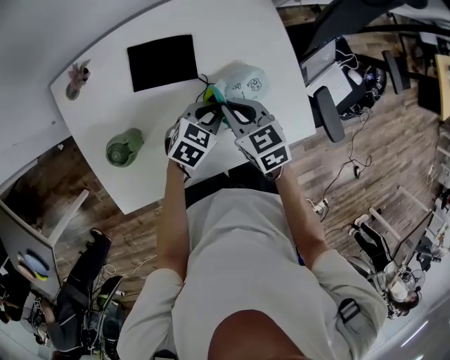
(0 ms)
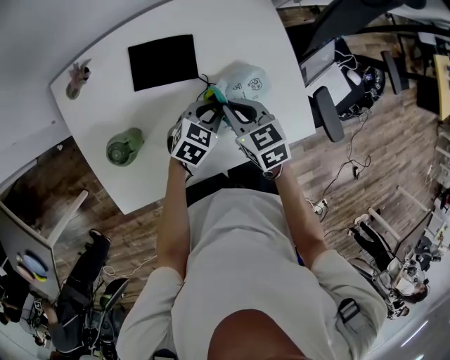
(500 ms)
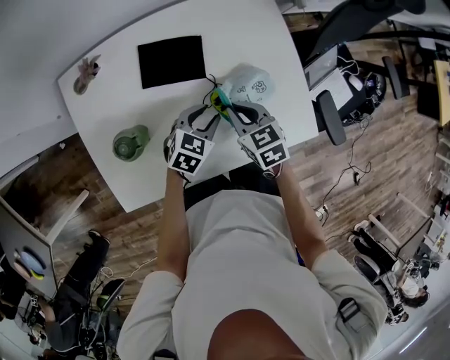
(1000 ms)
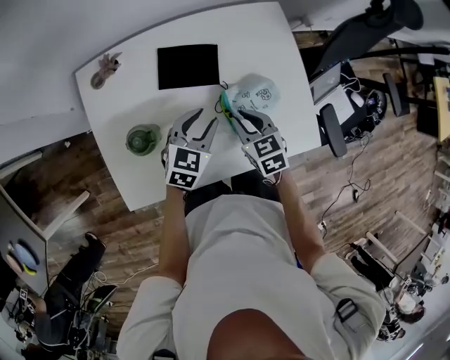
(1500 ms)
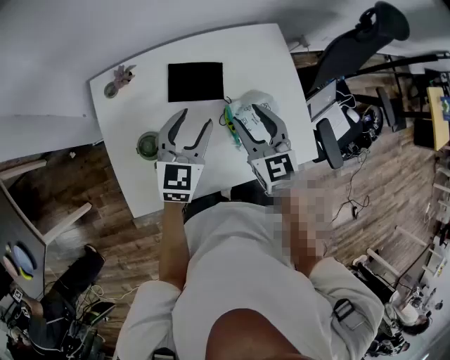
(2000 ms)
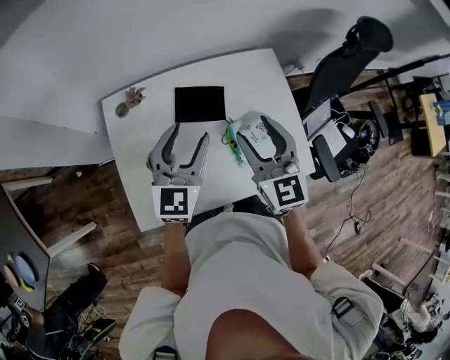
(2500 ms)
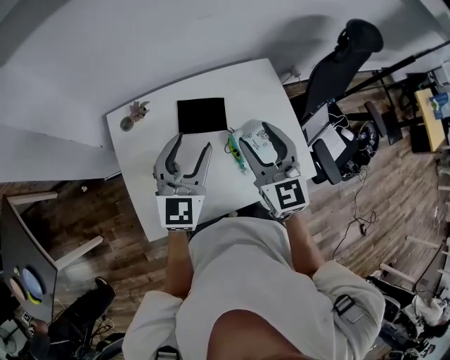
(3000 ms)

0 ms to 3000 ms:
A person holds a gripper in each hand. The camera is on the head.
0 ms to 1500 ms: The left gripper shifts approximately 10 cm to the left and upward, and turns by approximately 20 degrees.
1500 ms to 3000 ms: Both grippers travel together upward, roughly 25 cm. The left gripper rotates some 30 degrees. The right gripper angles its fingers upward, by roughly 40 degrees, and opens up.

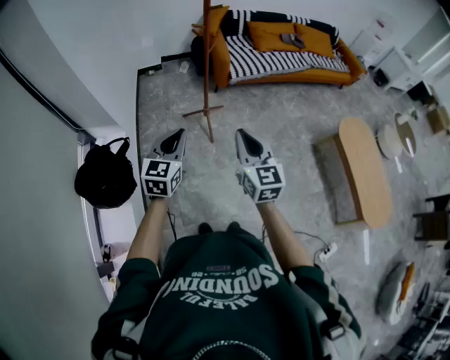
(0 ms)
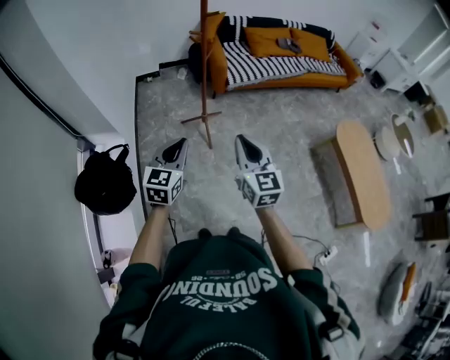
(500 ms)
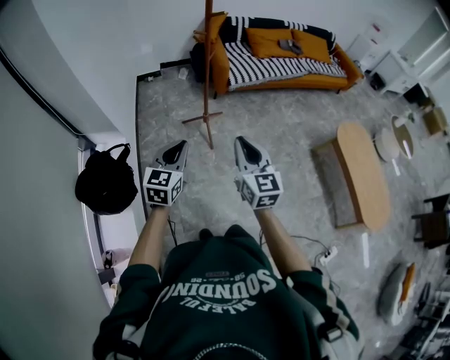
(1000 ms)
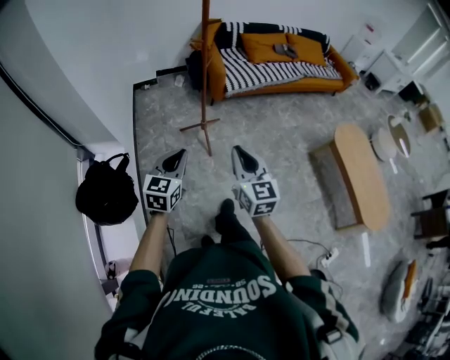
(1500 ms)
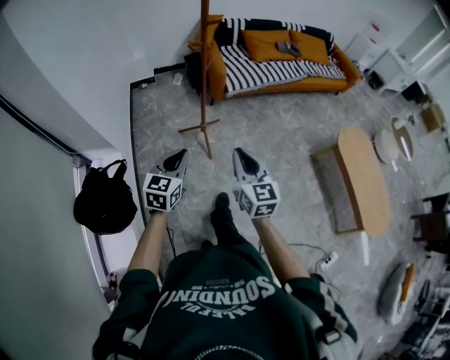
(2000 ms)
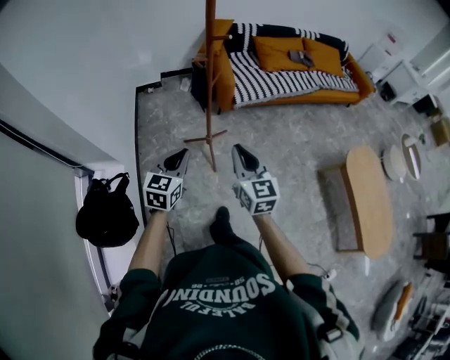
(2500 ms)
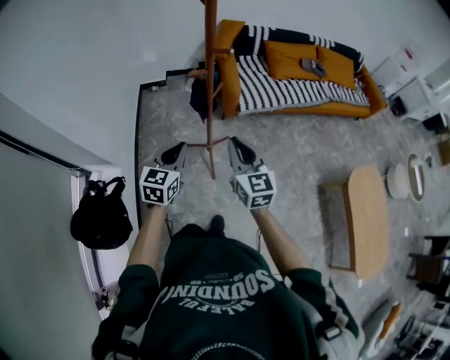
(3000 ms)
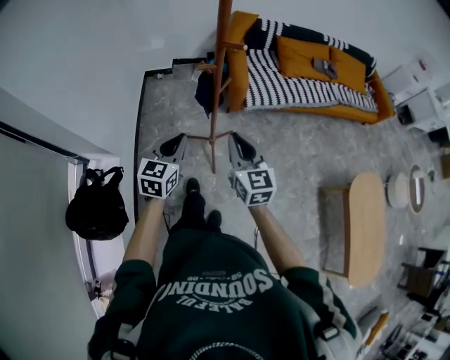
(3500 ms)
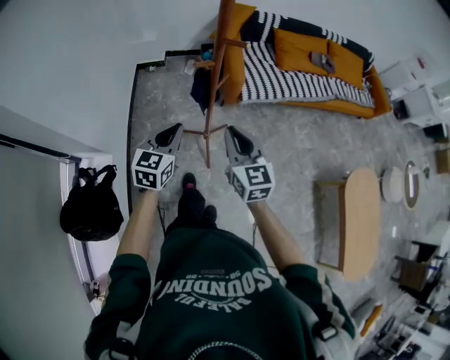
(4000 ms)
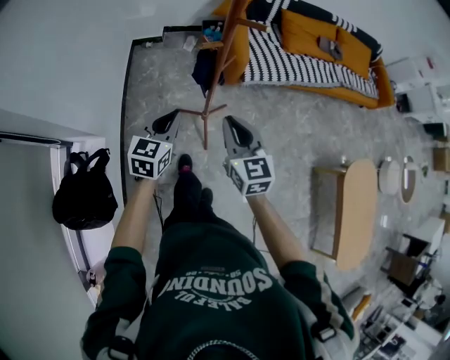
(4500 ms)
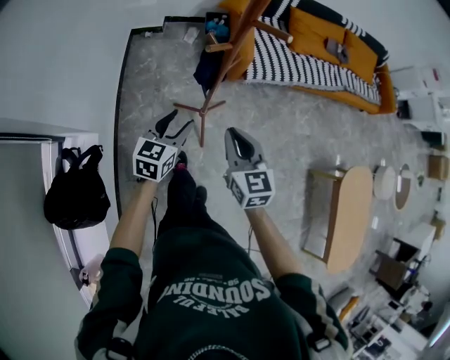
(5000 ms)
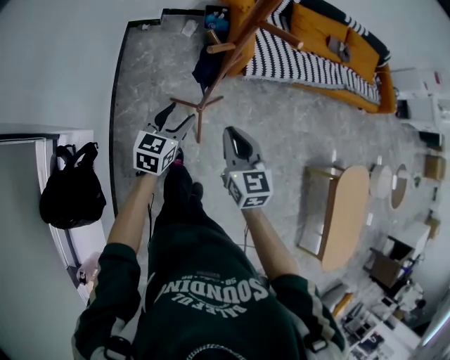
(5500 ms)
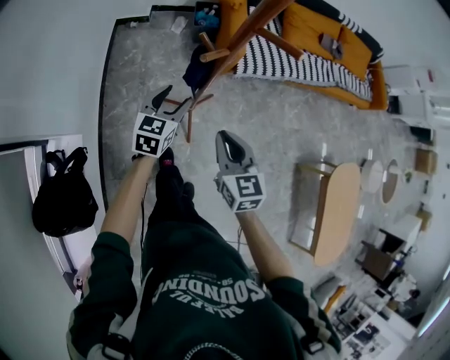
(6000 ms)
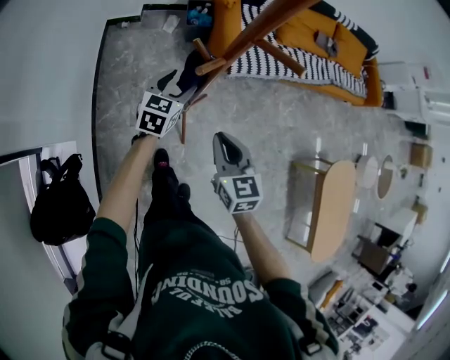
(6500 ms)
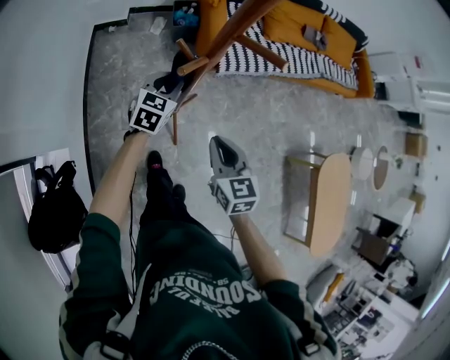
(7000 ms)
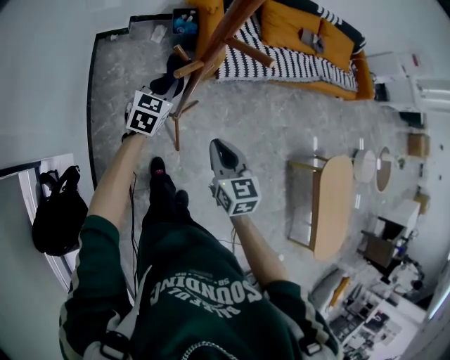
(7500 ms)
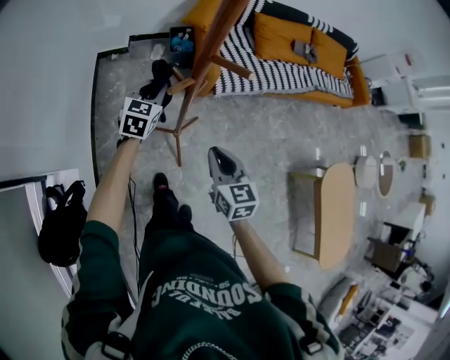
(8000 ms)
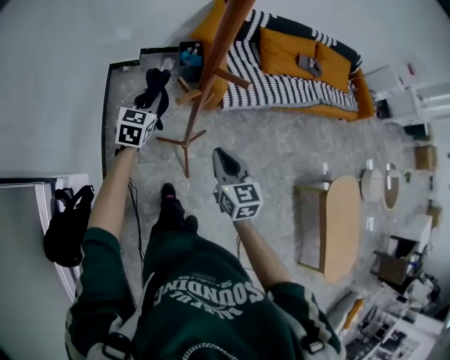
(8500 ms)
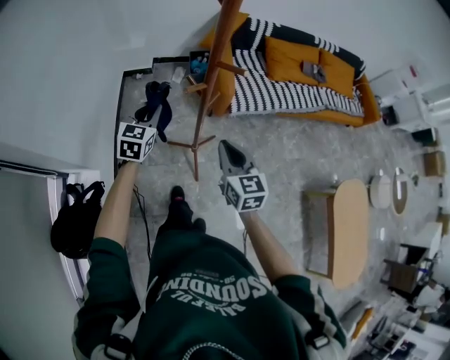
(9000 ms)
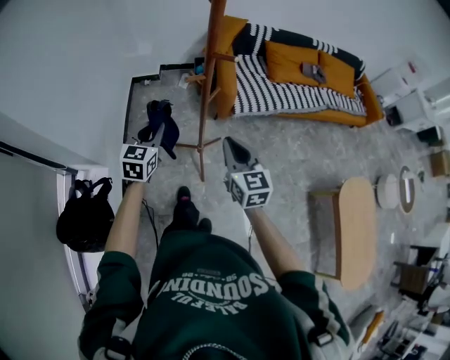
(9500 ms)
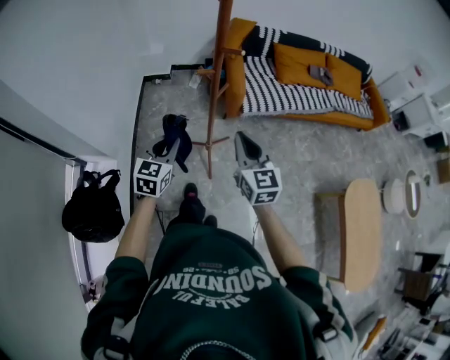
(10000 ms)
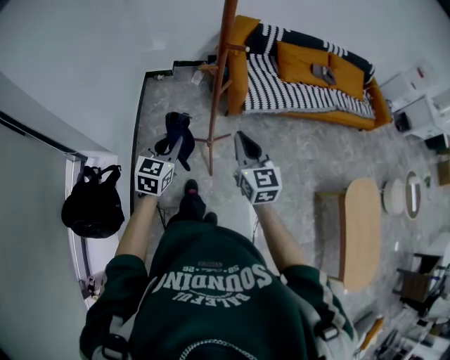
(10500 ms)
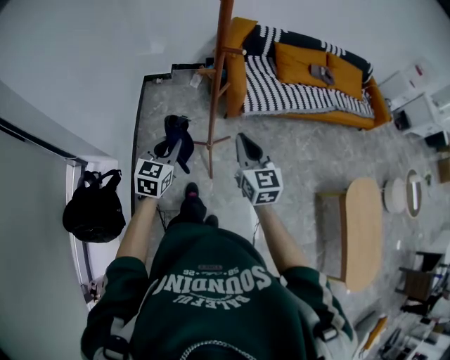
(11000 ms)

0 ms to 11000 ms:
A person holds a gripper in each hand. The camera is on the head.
0 ms to 2000 ms: The two grippers go about 10 cm forward.
2000 ms to 3500 ms: Both grippers travel together forward, about 30 cm.
3500 ms to 5500 ms: Both grippers move downward and forward, roughly 15 cm. The left gripper opens up.
5500 ms to 7500 ms: The left gripper moves forward, approximately 15 cm, and closes.
7500 ms to 9000 ms: The right gripper is displaced upward by roughly 10 cm. The left gripper goes about 15 cm upward, to the left and backward.
9000 ms to 11000 ms: The right gripper moves backward, about 10 cm; the left gripper is displaced backward by roughly 20 cm.

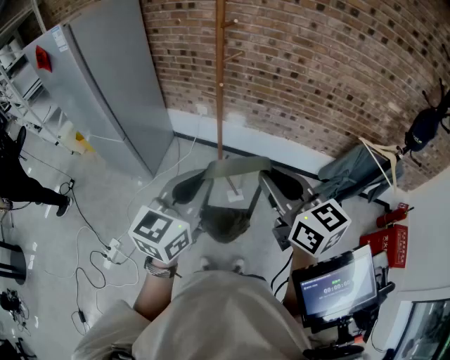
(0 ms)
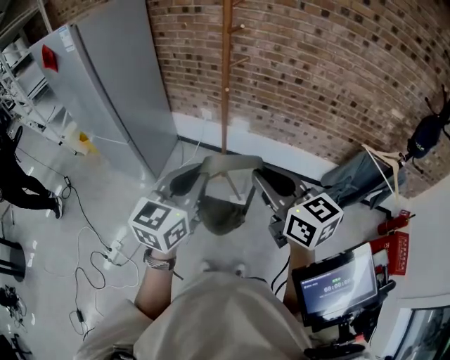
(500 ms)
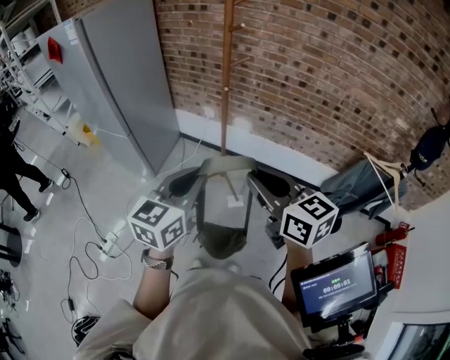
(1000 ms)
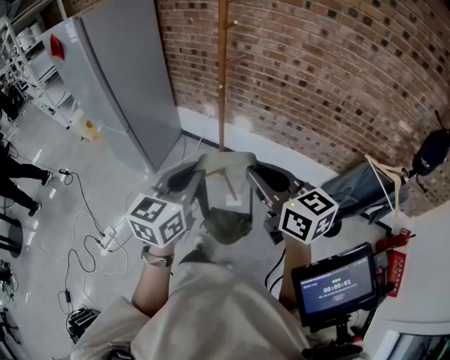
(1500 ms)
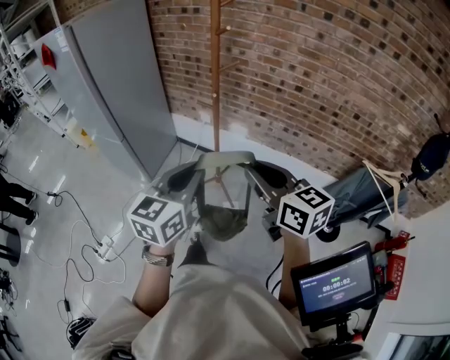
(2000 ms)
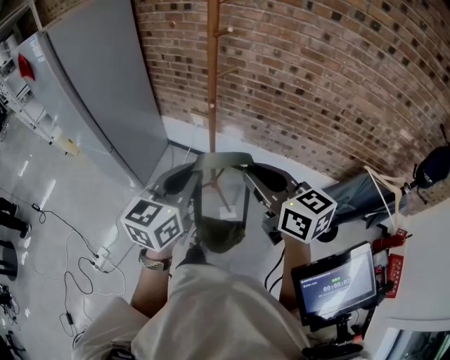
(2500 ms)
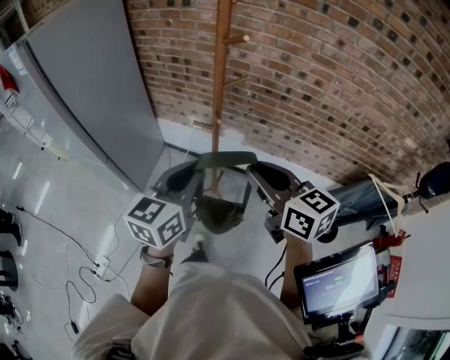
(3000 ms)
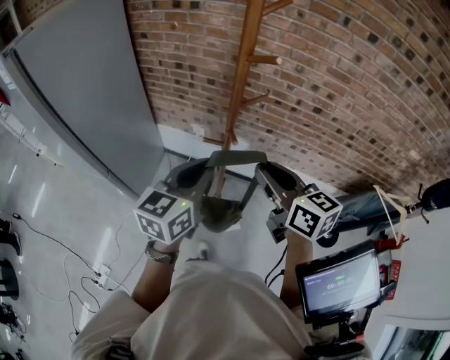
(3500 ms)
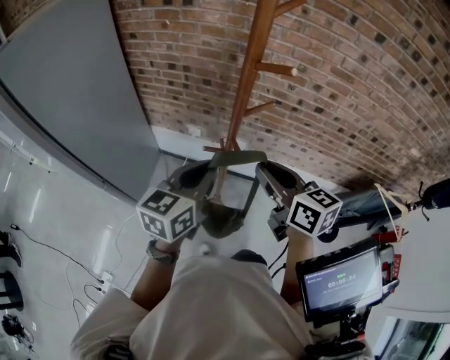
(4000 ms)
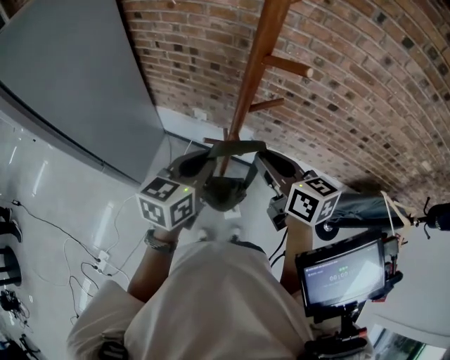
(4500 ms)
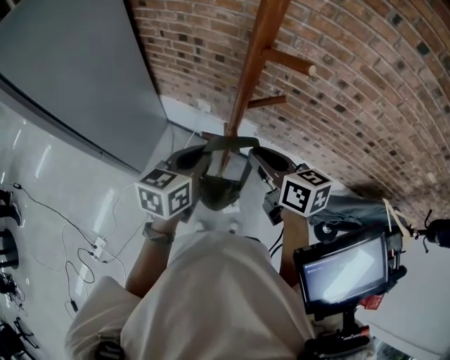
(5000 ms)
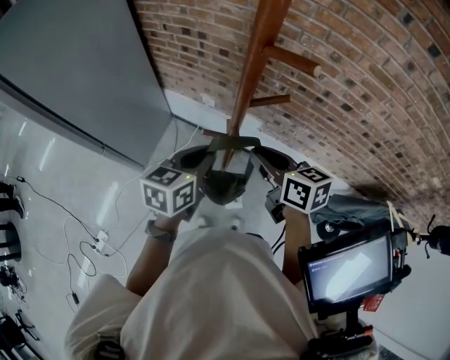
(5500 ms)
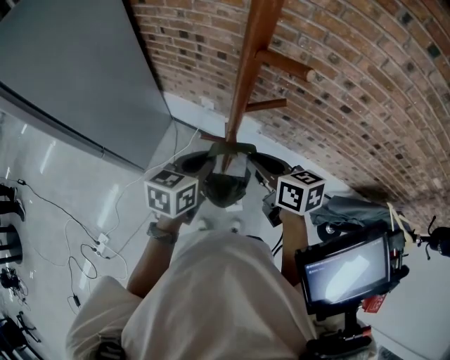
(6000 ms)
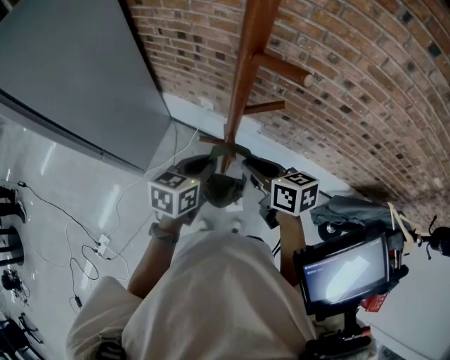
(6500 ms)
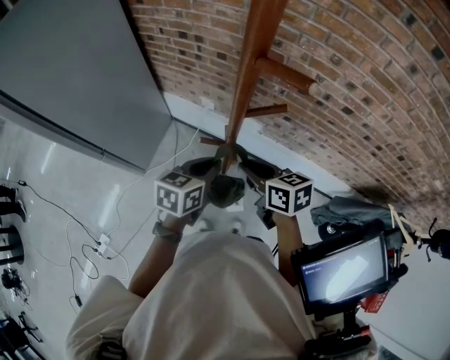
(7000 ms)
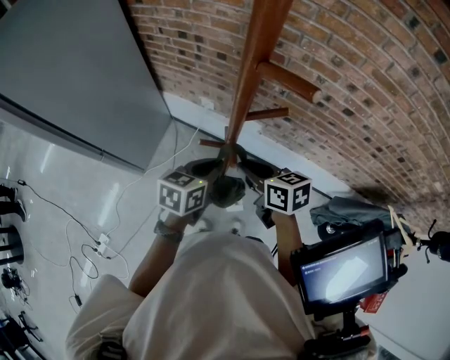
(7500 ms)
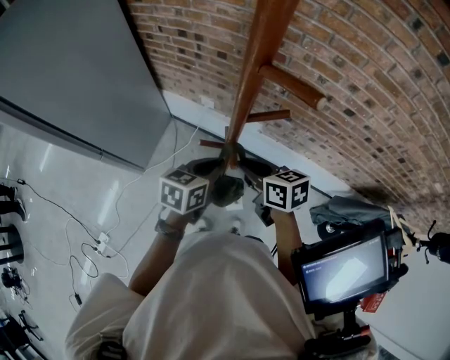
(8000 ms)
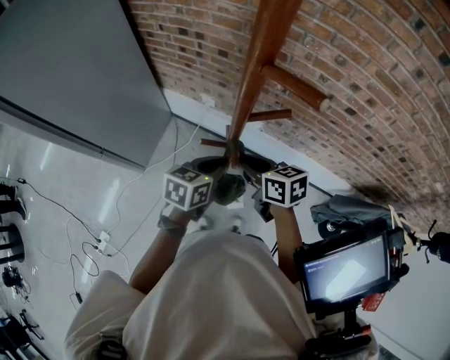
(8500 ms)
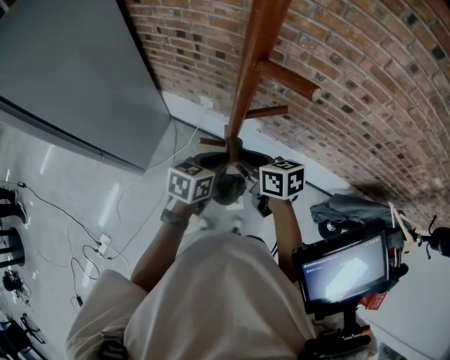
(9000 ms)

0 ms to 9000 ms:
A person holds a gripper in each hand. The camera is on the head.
0 ms to 2000 ms: The right gripper shifts some 10 cm forward; the left gripper shifts roughly 10 cm forward and to the right.
2000 ms to 4500 ms: The grippers both shift forward by some 35 cm.
4500 ms to 7000 ms: Both grippers move downward, roughly 10 cm.
7000 ms to 9000 ms: There are only small adjustments of the grippers.

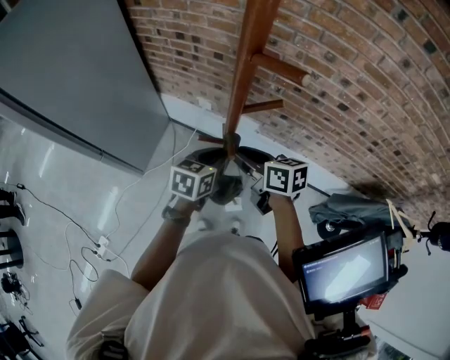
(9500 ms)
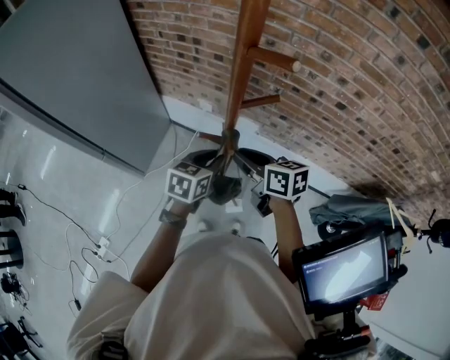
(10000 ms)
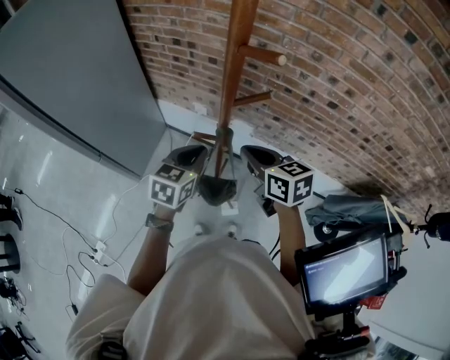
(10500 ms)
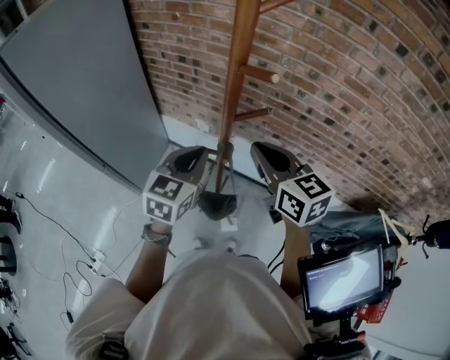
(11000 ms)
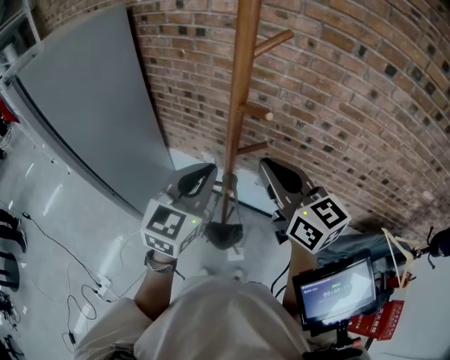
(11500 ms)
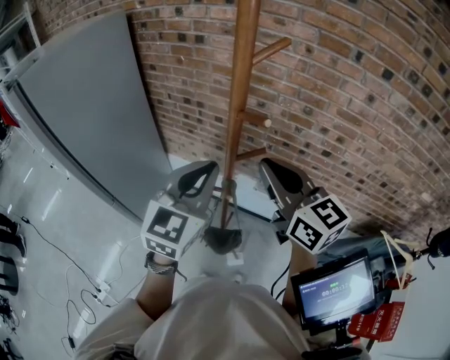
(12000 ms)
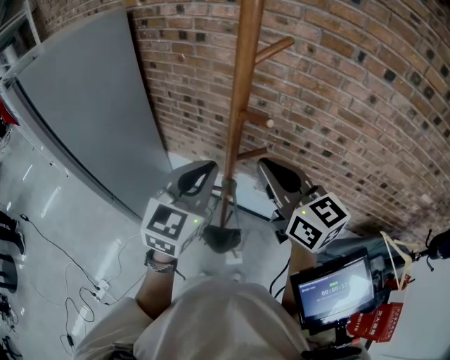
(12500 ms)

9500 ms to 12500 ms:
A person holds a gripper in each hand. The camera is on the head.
9500 ms to 11000 ms: Both grippers move upward, some 15 cm. The left gripper changes its angle by approximately 30 degrees. Meanwhile the right gripper turns by approximately 30 degrees, and closes.
11000 ms to 12500 ms: Both grippers travel together upward, approximately 10 cm.
